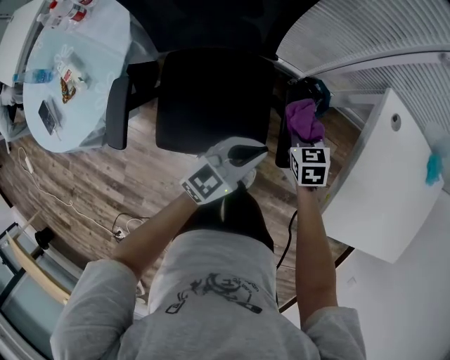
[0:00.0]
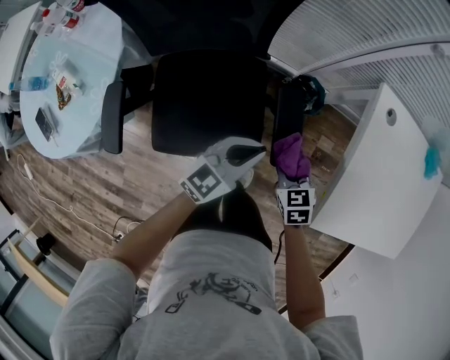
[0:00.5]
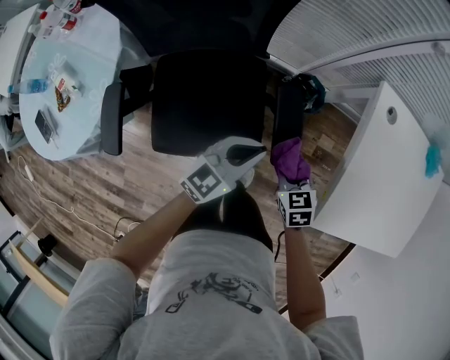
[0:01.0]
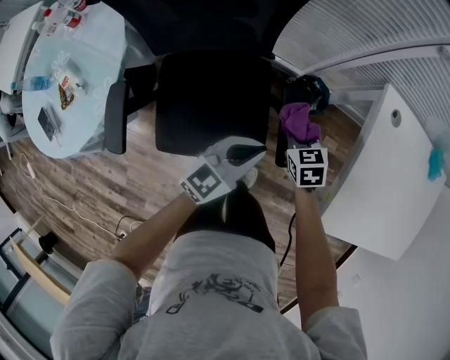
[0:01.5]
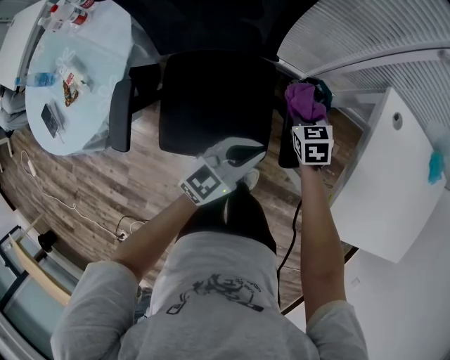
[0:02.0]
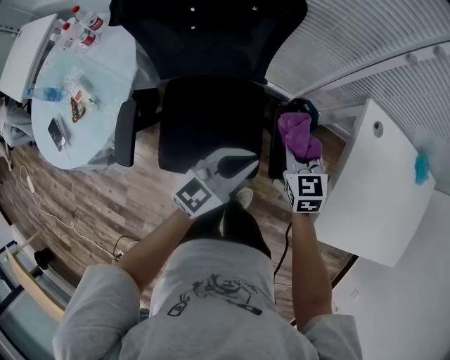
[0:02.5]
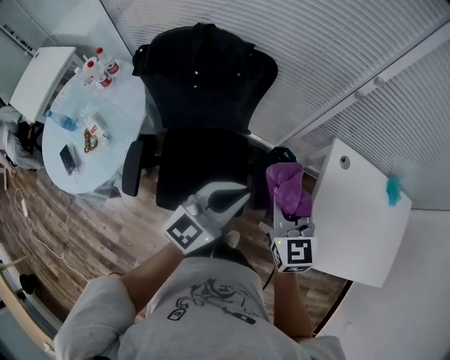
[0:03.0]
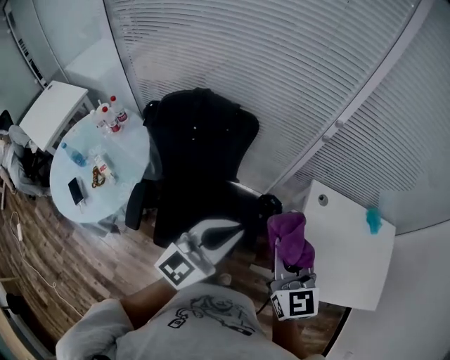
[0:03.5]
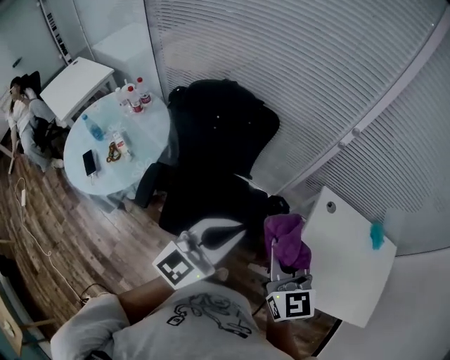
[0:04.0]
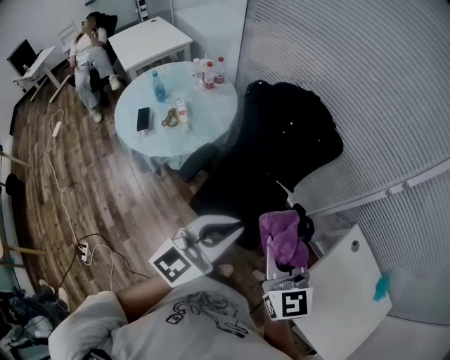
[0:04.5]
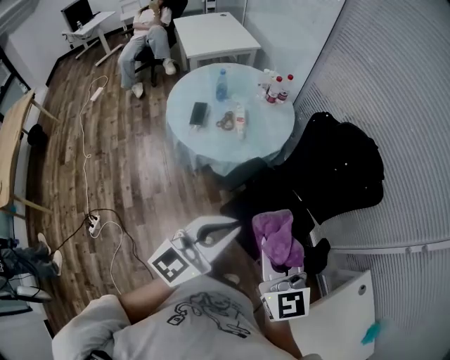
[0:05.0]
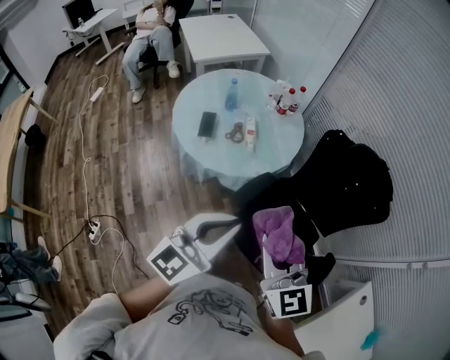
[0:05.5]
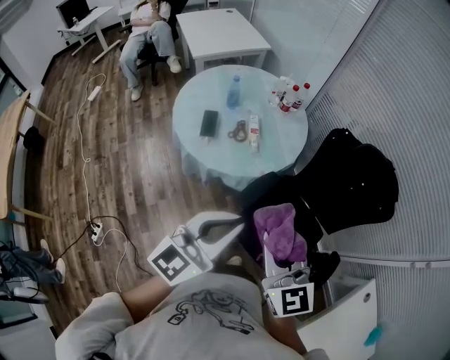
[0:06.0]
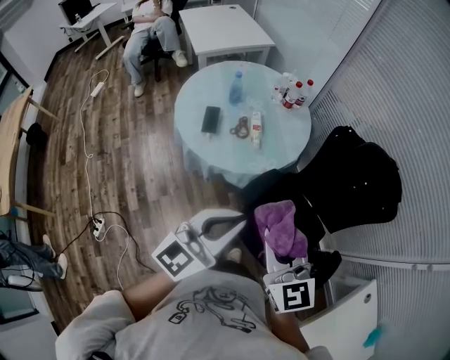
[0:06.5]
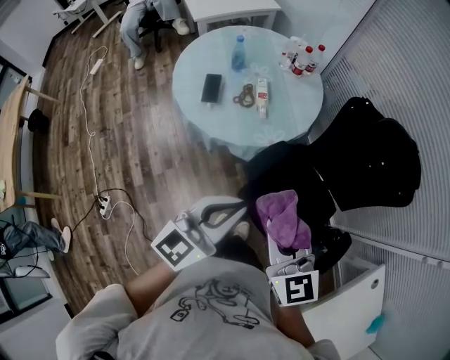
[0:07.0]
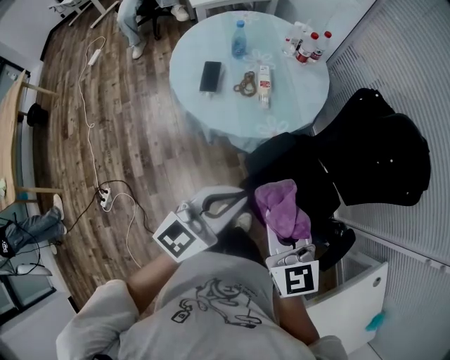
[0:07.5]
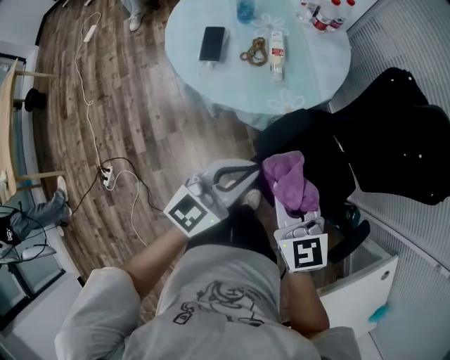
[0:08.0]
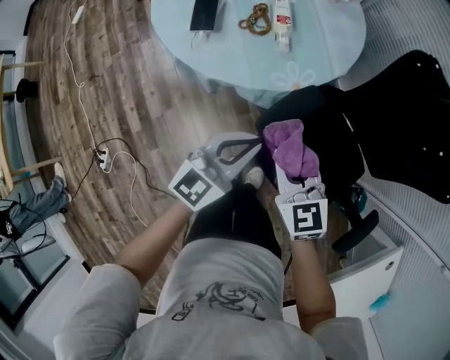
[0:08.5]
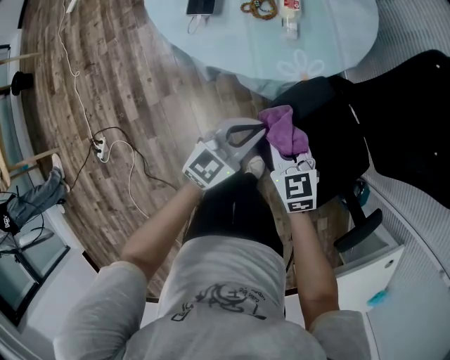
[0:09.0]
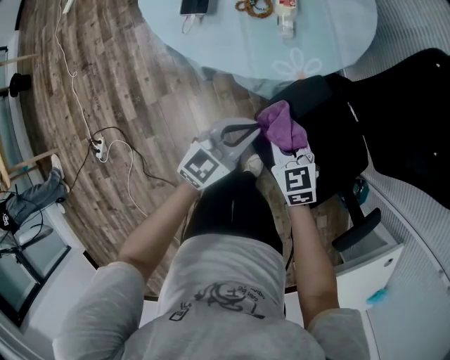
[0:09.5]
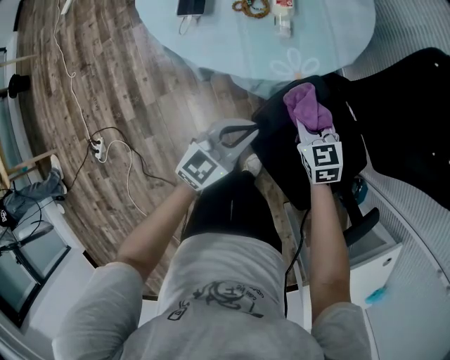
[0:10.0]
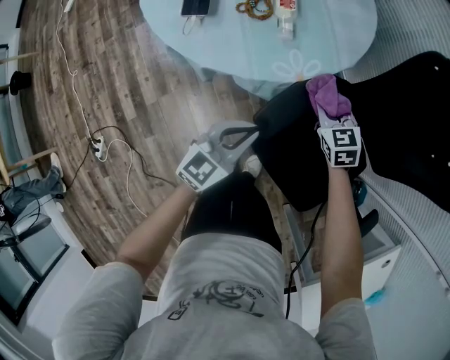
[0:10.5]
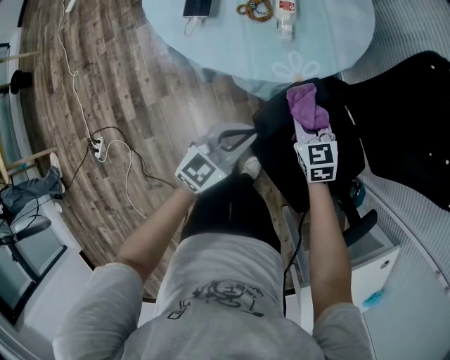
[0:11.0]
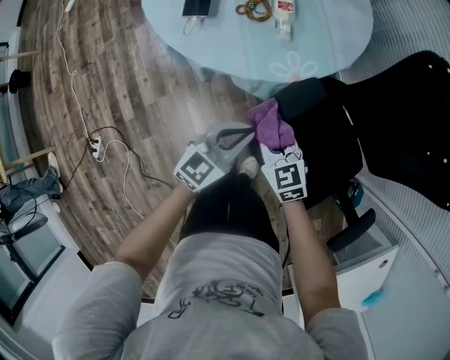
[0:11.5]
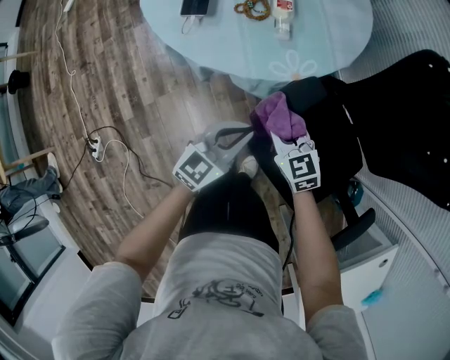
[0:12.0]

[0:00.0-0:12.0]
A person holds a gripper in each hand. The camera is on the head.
0:00.0 to 0:02.0: The right gripper moves about 10 cm backward and comes back.
0:02.0 to 0:04.0: The right gripper moves upward and backward, some 50 cm, and points its fingers approximately 40 degrees further upward, while the left gripper travels upward by some 40 cm, and swivels approximately 30 degrees.
0:04.0 to 0:06.0: The pair of grippers is taken about 50 cm. The right gripper turns by approximately 40 degrees. The left gripper turns by roughly 40 degrees.
0:06.0 to 0:08.0: The two grippers go roughly 25 cm downward and forward.
0:08.0 to 0:10.0: The left gripper is displaced downward by roughly 20 cm. The right gripper heads downward and forward, covering approximately 30 cm.
0:10.0 to 0:12.0: The right gripper travels backward and to the left by some 10 cm.

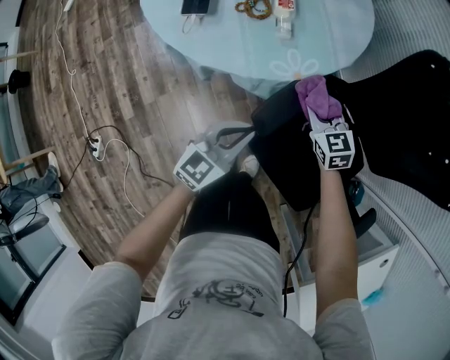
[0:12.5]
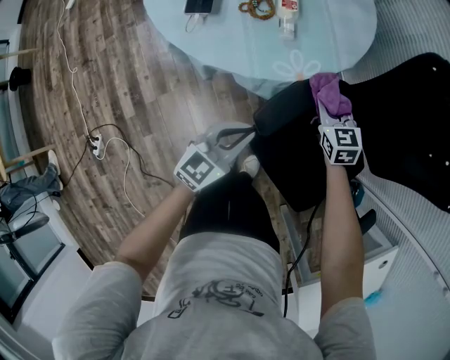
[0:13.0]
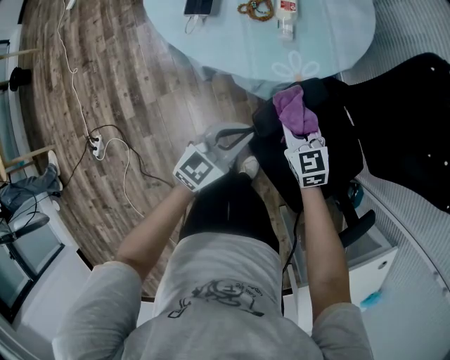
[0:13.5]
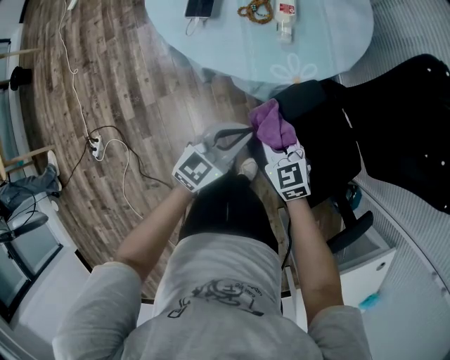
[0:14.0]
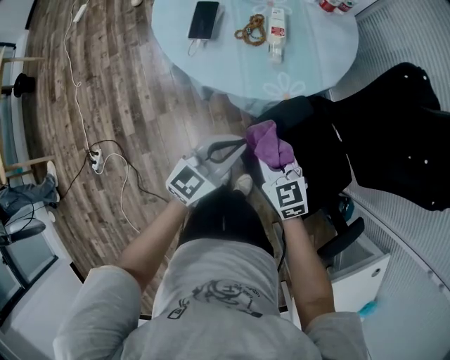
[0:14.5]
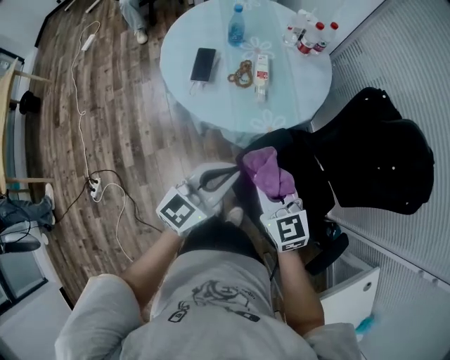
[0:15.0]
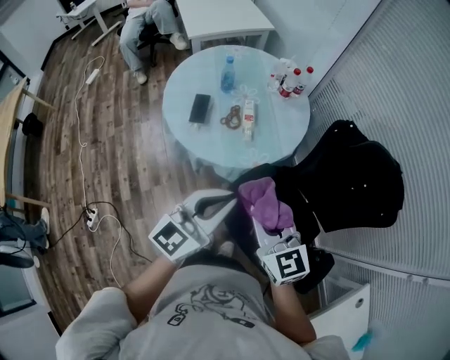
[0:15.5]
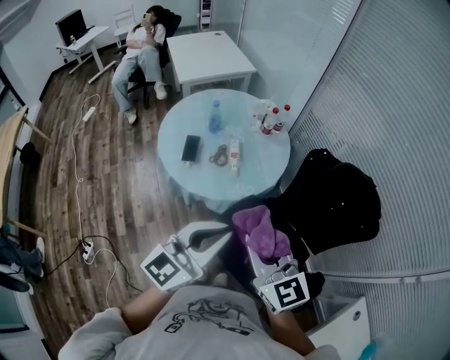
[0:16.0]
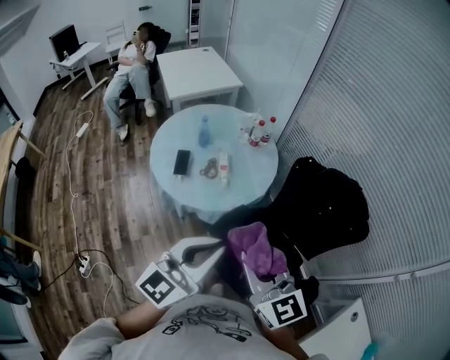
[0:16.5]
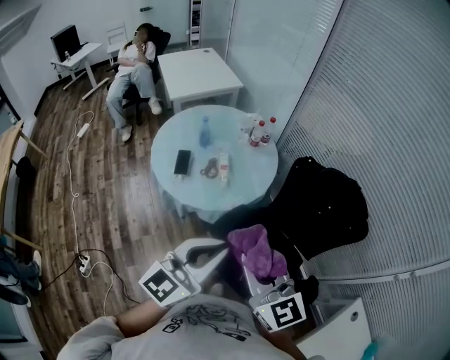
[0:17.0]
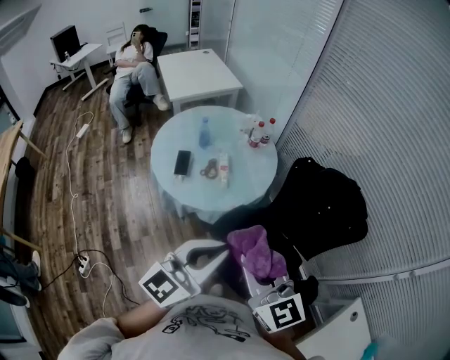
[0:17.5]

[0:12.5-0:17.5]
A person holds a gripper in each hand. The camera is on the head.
0:12.5 to 0:15.0: The left gripper shifts some 20 cm upward. Meanwhile the right gripper travels upward and backward by some 25 cm.
0:15.0 to 0:17.5: The two grippers go some 35 cm upward and backward. The right gripper rotates some 20 degrees.

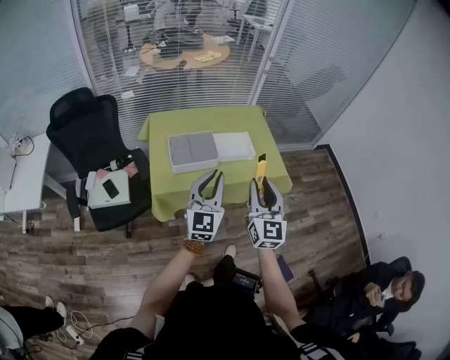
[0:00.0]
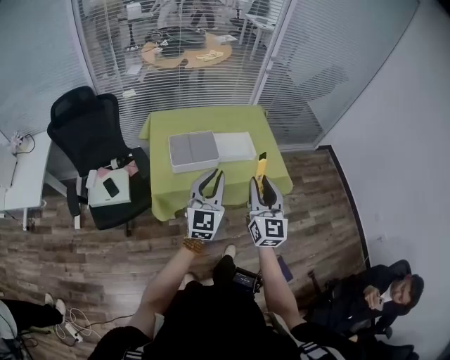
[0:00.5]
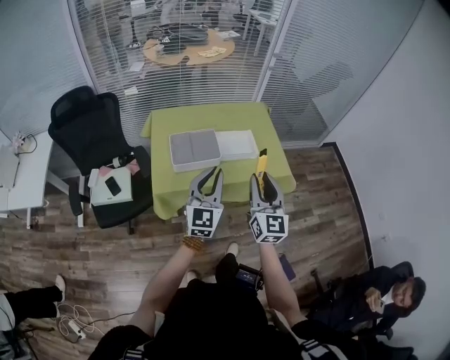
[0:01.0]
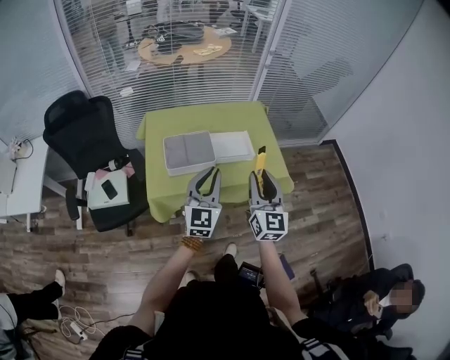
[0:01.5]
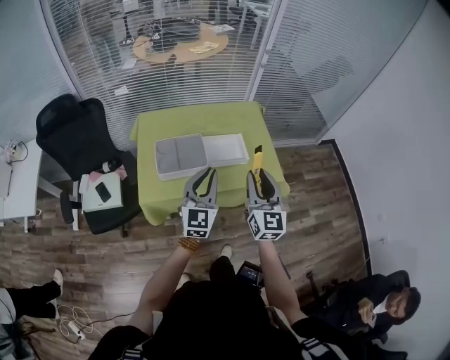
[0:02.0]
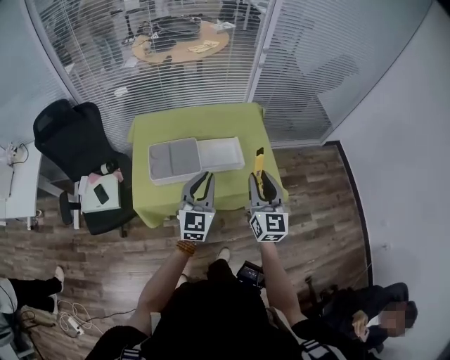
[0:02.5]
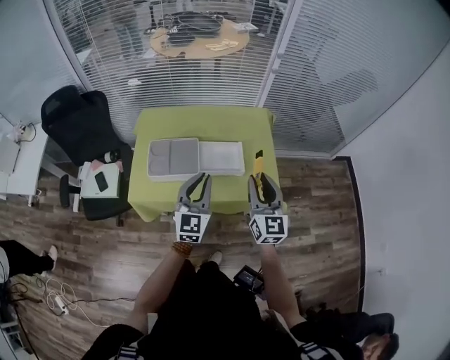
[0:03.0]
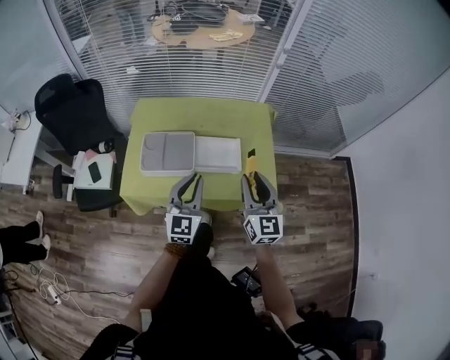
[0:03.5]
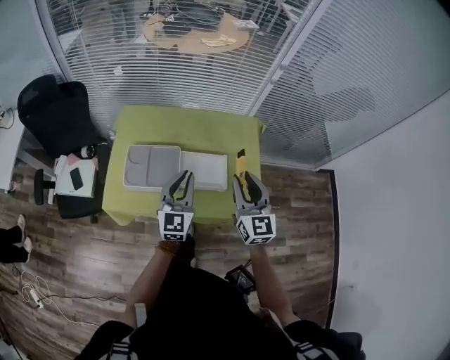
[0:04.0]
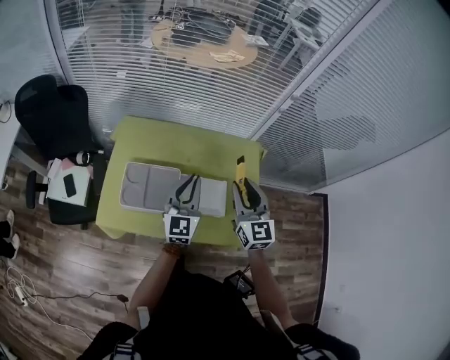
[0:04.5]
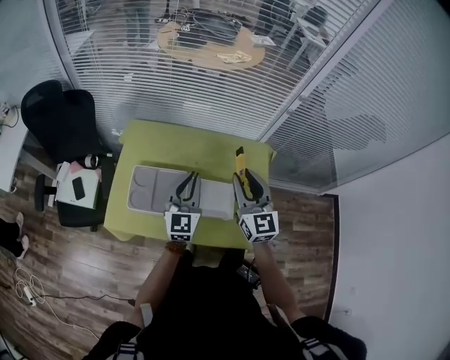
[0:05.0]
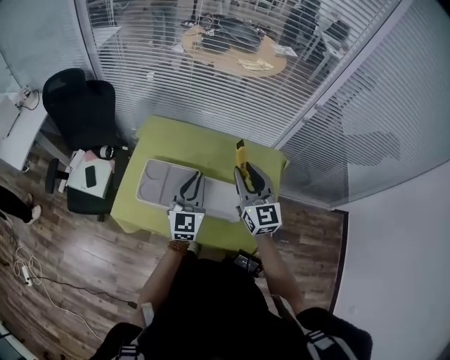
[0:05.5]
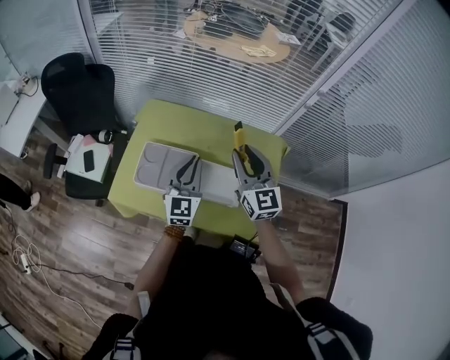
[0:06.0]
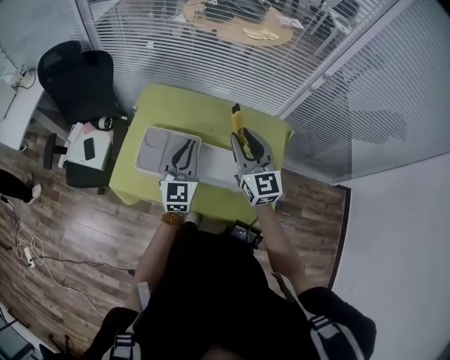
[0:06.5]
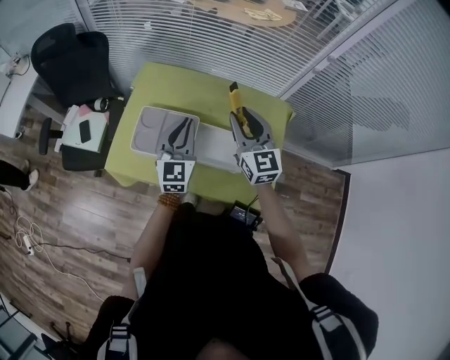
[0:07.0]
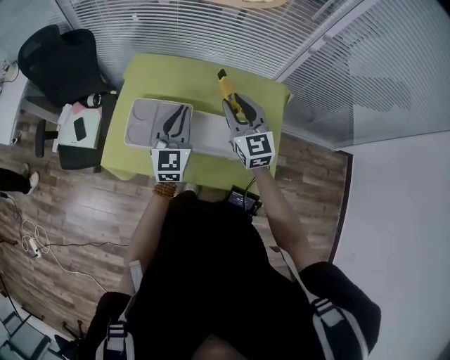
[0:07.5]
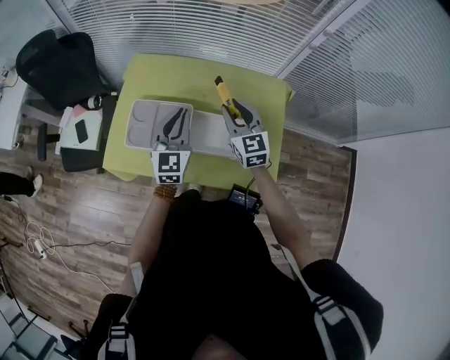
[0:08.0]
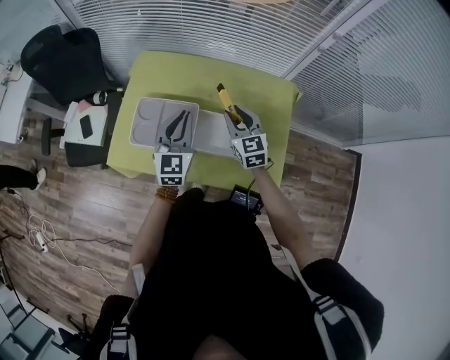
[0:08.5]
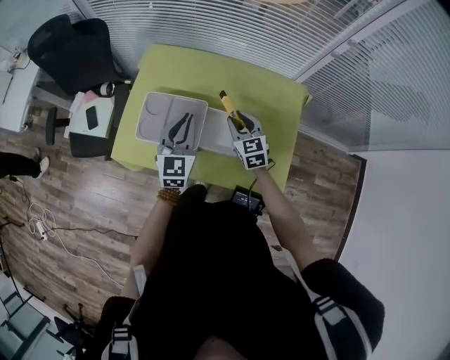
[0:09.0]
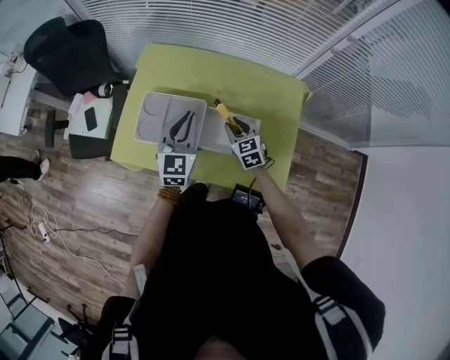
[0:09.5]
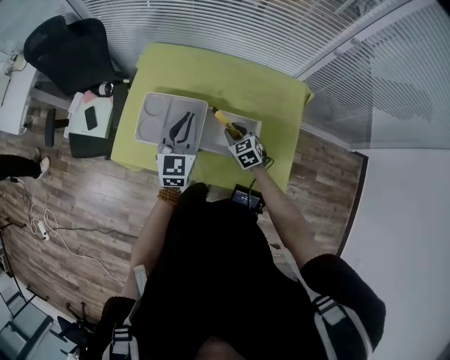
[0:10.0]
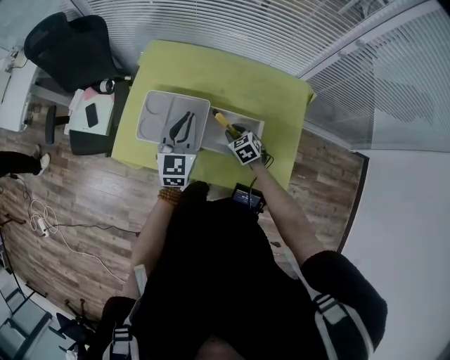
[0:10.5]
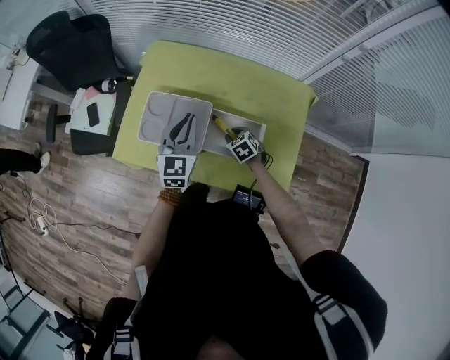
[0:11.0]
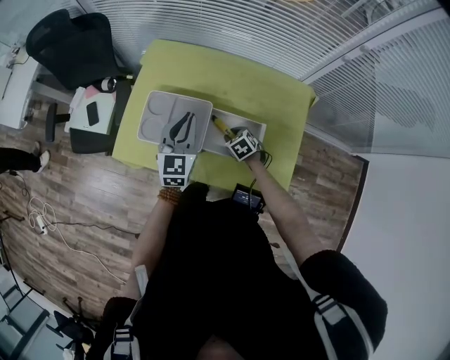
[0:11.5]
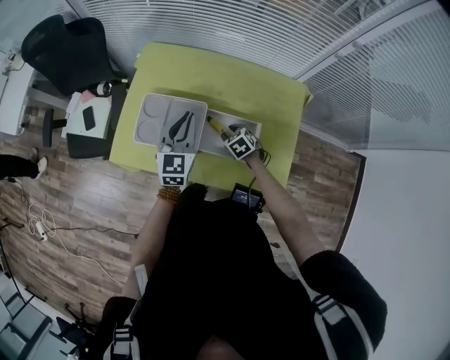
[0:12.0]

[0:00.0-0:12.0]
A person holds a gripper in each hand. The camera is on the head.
0:00.0 to 0:02.0: The left gripper travels forward by some 10 cm, while the right gripper shifts approximately 15 cm forward and to the right.
0:02.0 to 0:04.0: Both grippers travel together forward, approximately 15 cm.
0:04.0 to 0:06.0: The left gripper moves forward, approximately 10 cm. The right gripper heads forward and to the left, covering about 15 cm.
0:06.0 to 0:08.0: The right gripper moves downward, some 10 cm.
0:08.0 to 0:10.0: The right gripper goes some 20 cm downward, and angles its fingers downward, by about 30 degrees.
